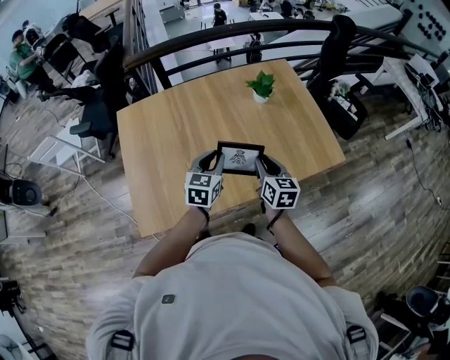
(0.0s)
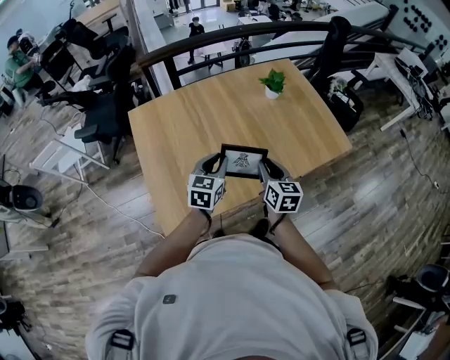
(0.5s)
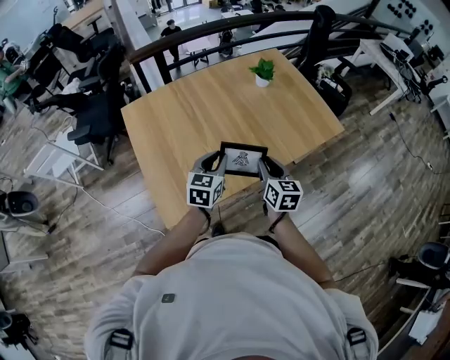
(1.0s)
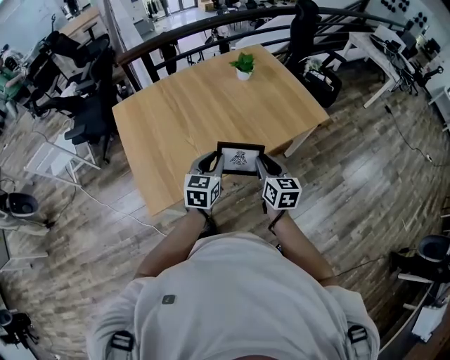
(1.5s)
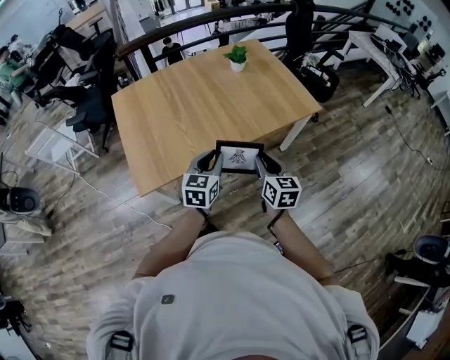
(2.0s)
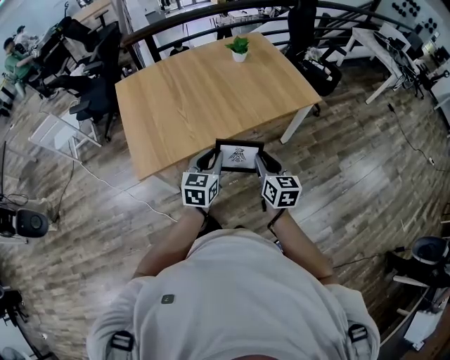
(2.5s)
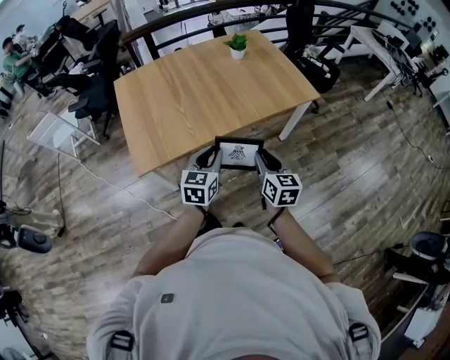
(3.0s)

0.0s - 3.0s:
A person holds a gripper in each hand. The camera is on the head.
0.0s - 1.5s: Both grippers move backward, roughly 20 cm.
1.5s - 3.0s: The two grippers go some 15 cm backward and to the right.

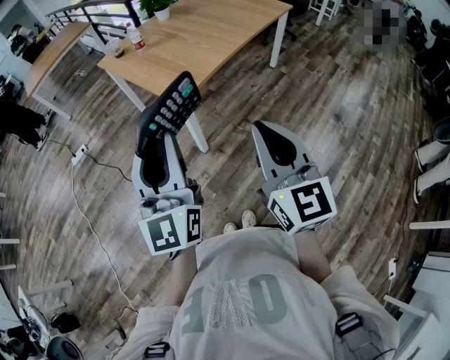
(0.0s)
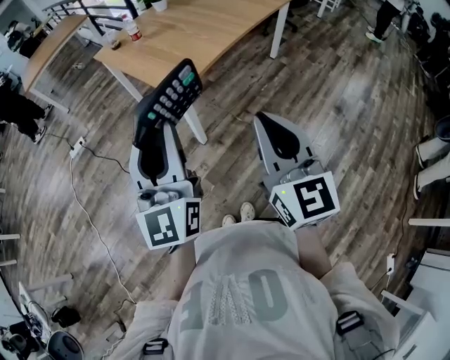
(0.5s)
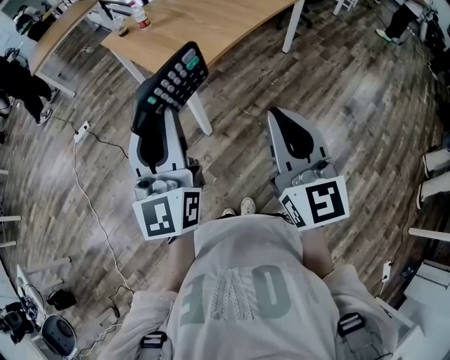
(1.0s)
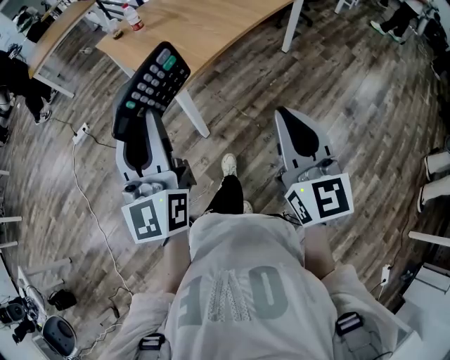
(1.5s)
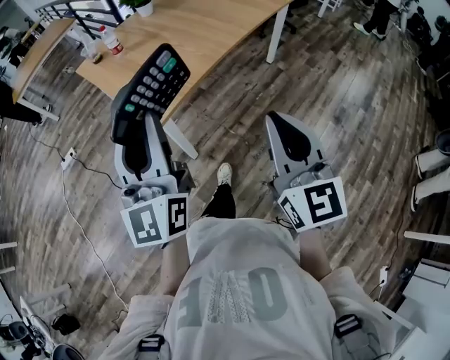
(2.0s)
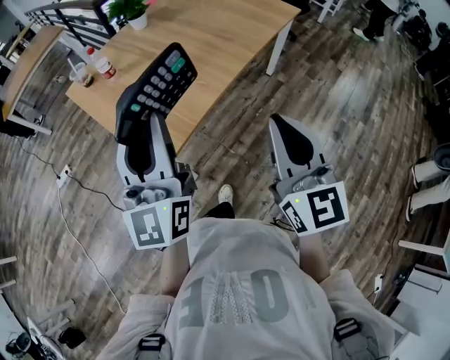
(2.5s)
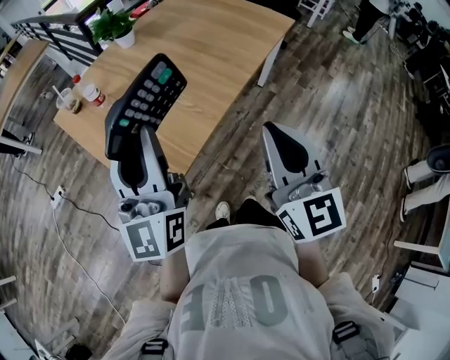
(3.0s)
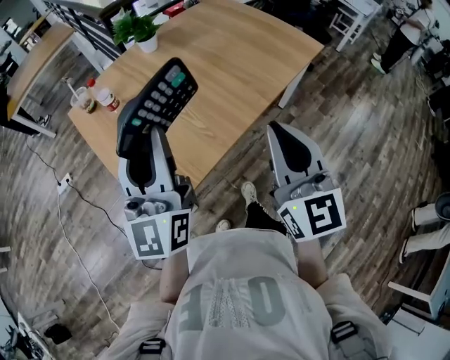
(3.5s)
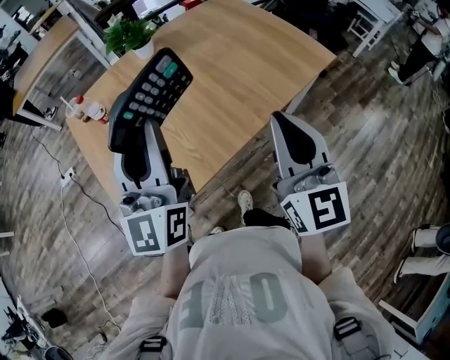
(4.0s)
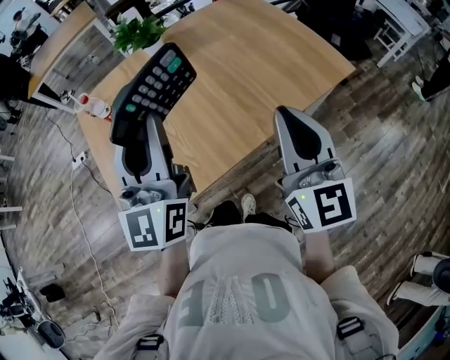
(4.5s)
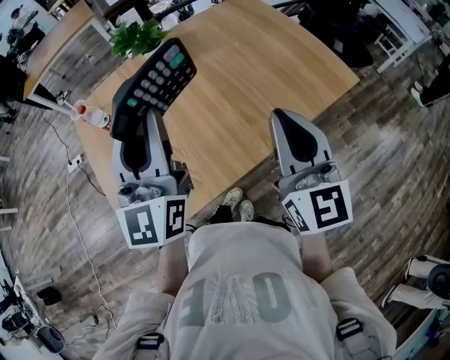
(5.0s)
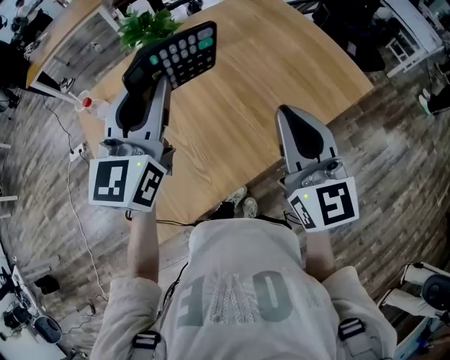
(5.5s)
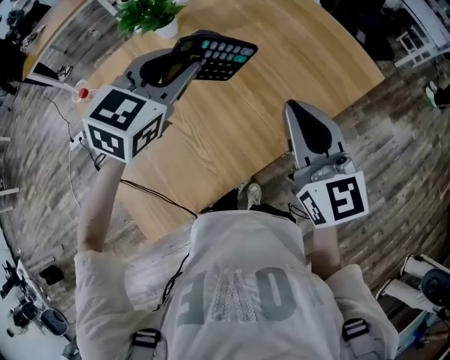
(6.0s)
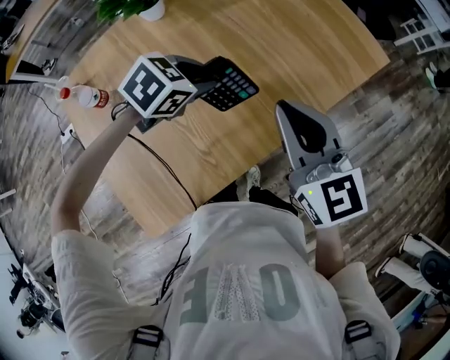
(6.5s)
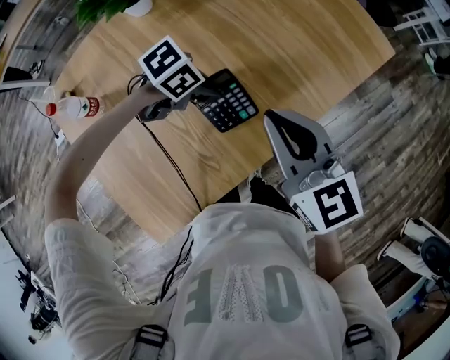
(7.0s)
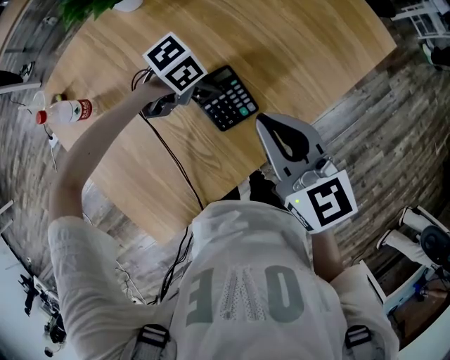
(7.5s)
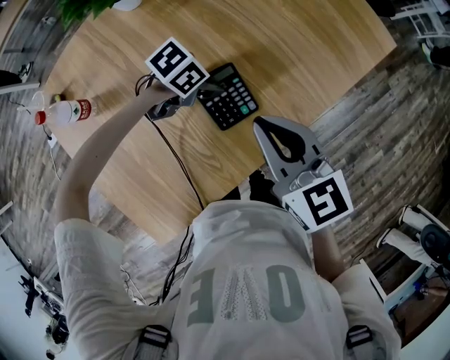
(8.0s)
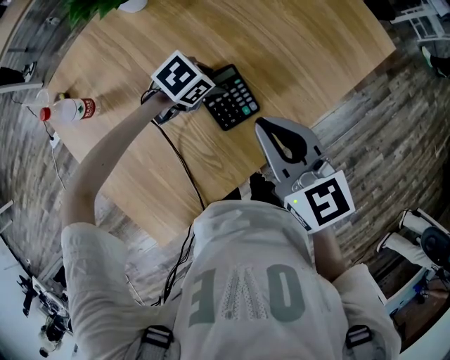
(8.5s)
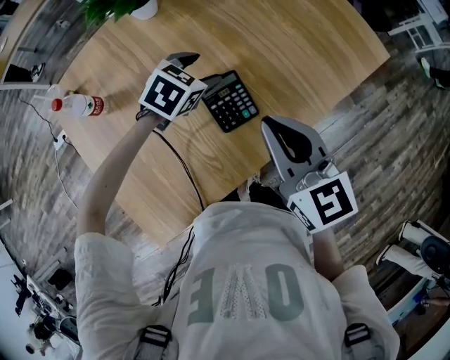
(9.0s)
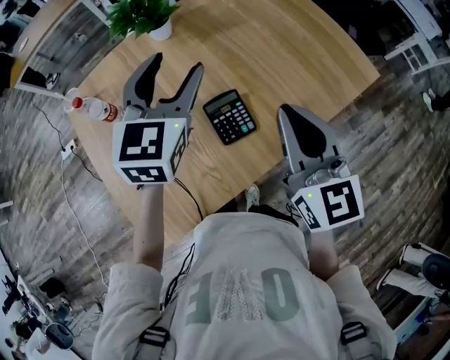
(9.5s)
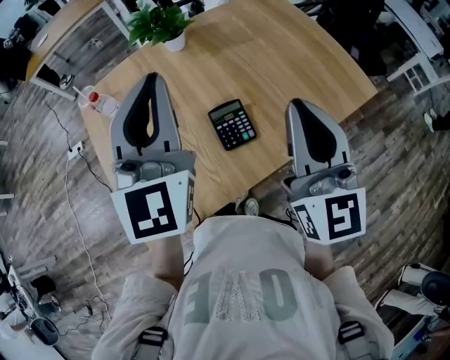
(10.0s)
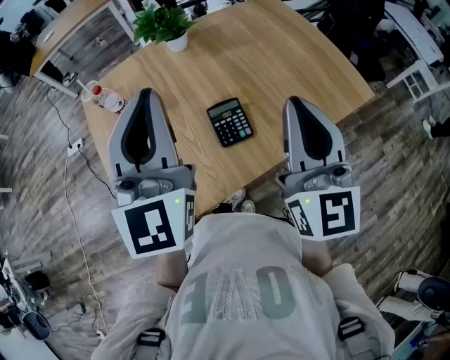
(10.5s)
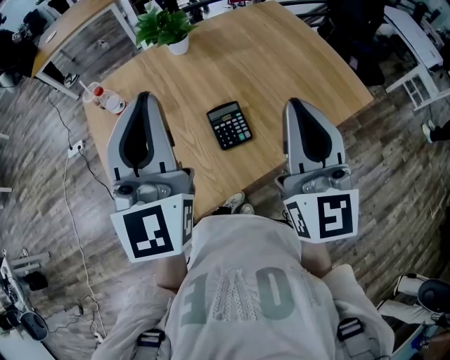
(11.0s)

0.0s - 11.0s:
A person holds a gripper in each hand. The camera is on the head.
0.0s - 2.0s: Both grippers travel together forward and to the right, approximately 15 cm.
2.0s - 3.5s: Both grippers move forward, about 30 cm.
3.5s - 5.5s: Both grippers move forward and to the right, about 25 cm. The left gripper swivels some 20 degrees.
5.5s - 7.5s: The left gripper heads downward, covering about 35 cm, and tilts its fingers some 50 degrees downward. The right gripper travels downward by some 10 cm, and turns by some 30 degrees.
7.5s - 9.0s: The left gripper moves upward, roughly 5 cm, rotates some 50 degrees, and opens.
9.0s - 11.0s: The right gripper heads upward, covering roughly 15 cm, and swivels some 30 degrees. The left gripper shifts some 40 cm upward and backward, tips its fingers upward by approximately 60 degrees, and closes up.

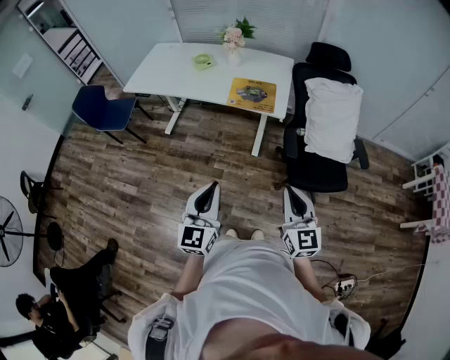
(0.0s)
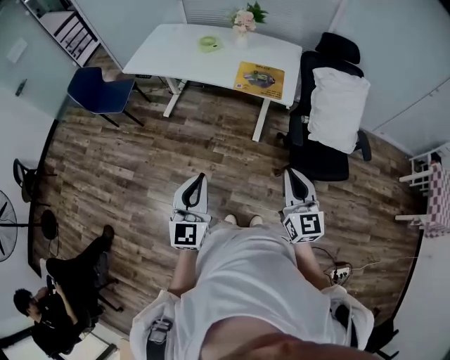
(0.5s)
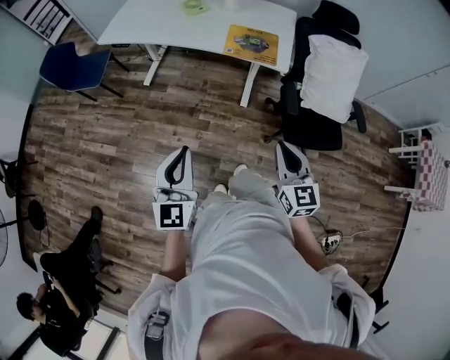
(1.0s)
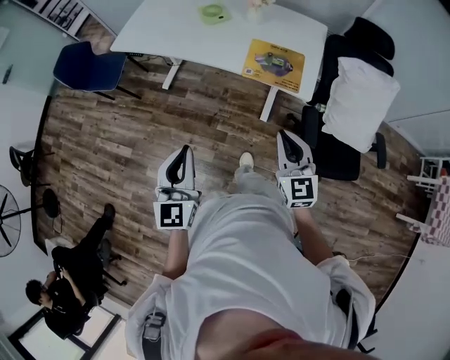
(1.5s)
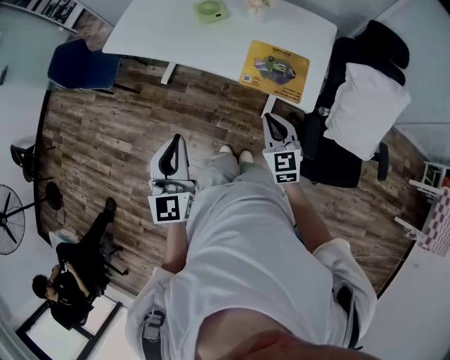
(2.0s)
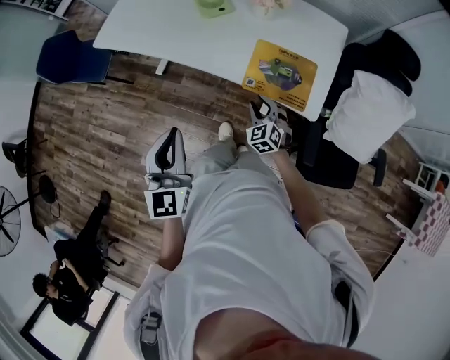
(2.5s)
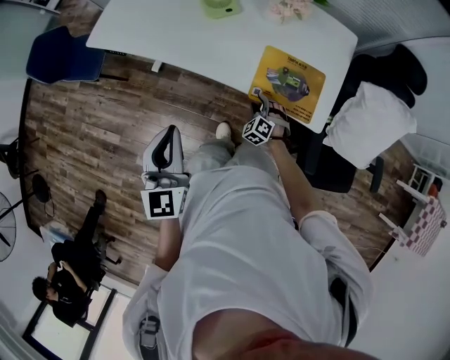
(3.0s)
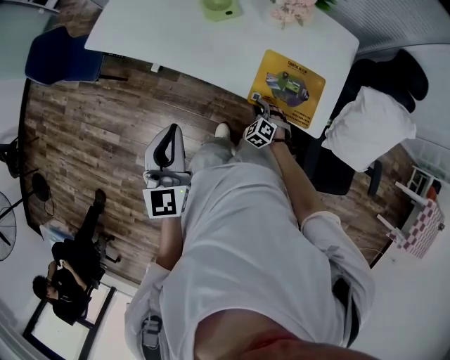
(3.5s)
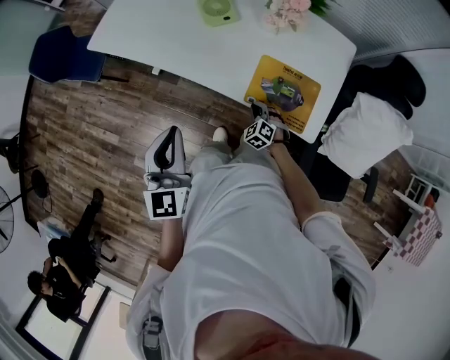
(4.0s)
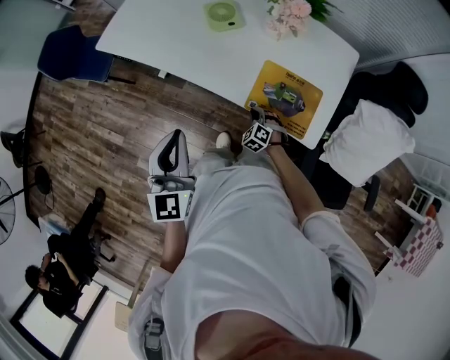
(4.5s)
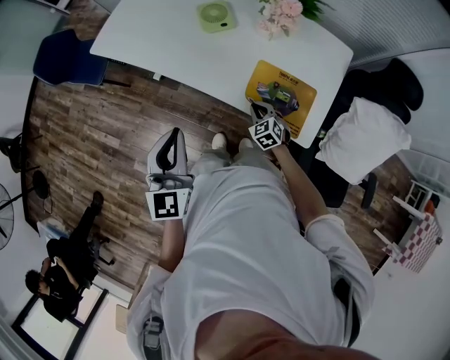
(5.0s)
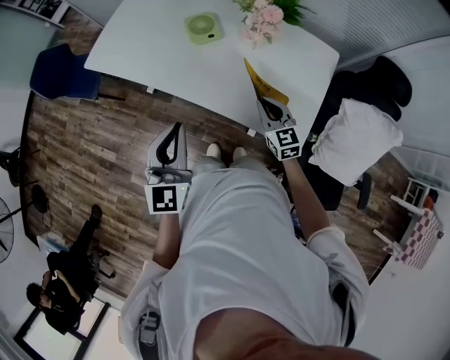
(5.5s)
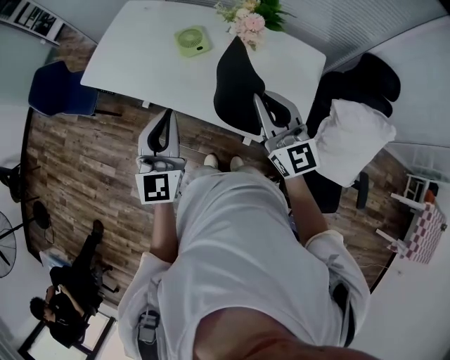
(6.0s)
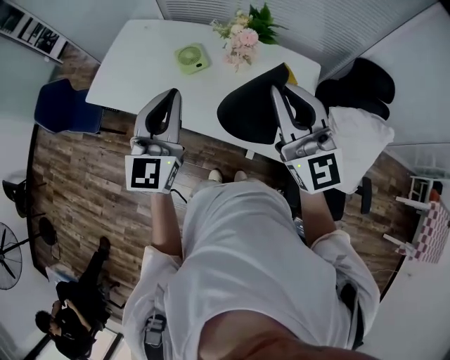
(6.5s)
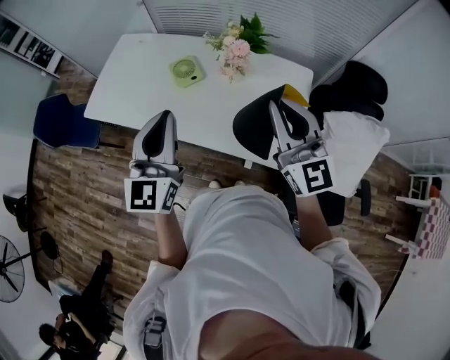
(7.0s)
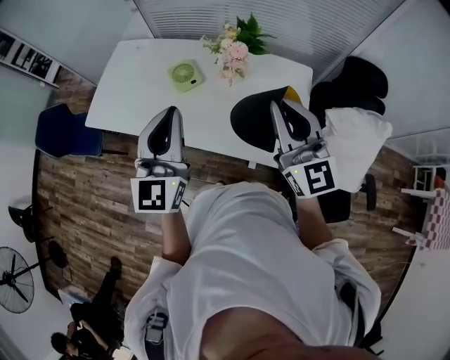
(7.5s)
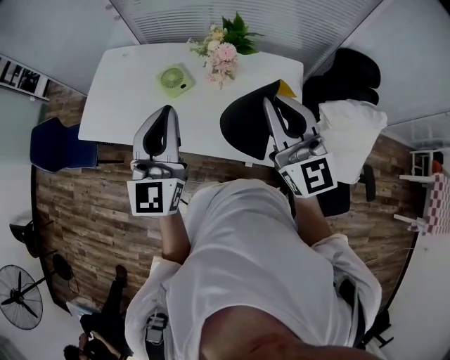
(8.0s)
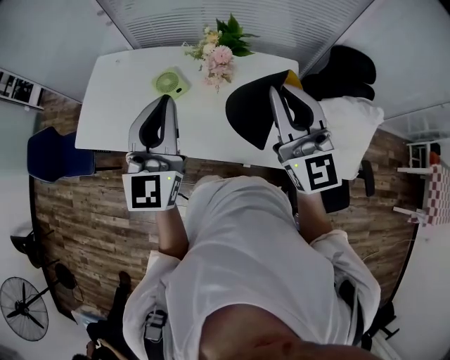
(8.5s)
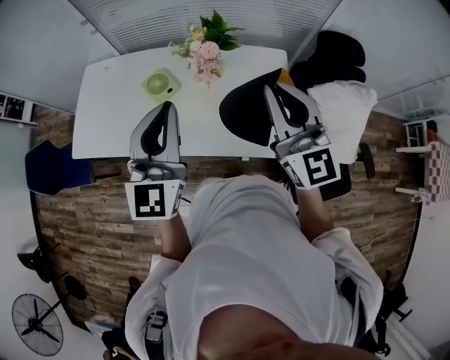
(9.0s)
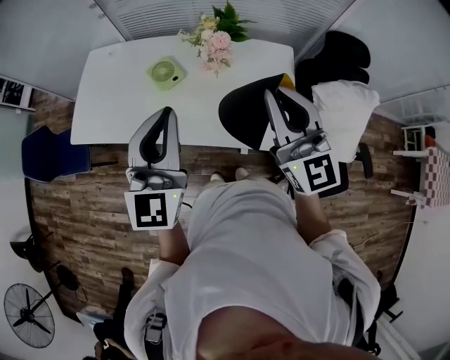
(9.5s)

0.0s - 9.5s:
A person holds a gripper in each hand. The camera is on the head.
0.0s - 2.0s: The two grippers go approximately 35 cm forward. The right gripper rotates approximately 20 degrees.
2.0s - 4.0s: The right gripper goes approximately 30 cm downward and forward, tips its fingers downward by about 30 degrees, and opens, then closes again, while the left gripper goes approximately 15 cm forward.
4.0s - 5.5s: The left gripper heads to the right, covering some 5 cm. The right gripper moves upward, some 20 cm, and points its fingers about 30 degrees further upward.
5.5s - 7.5s: The left gripper goes approximately 15 cm upward and forward, while the right gripper is displaced upward by roughly 30 cm, and swivels about 30 degrees.
7.5s - 9.5s: The grippers make only small movements.

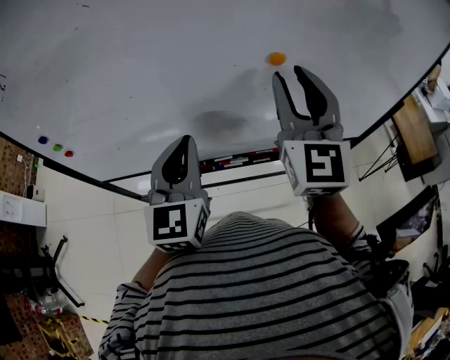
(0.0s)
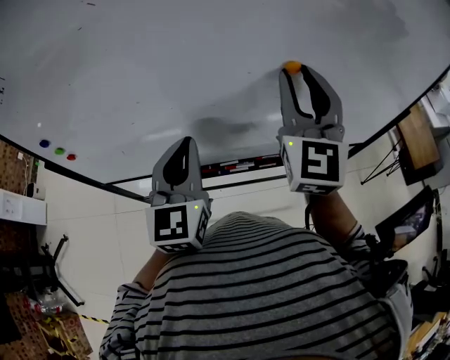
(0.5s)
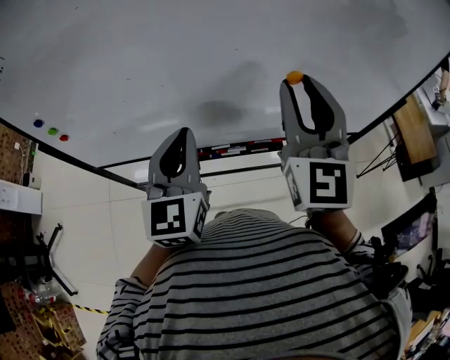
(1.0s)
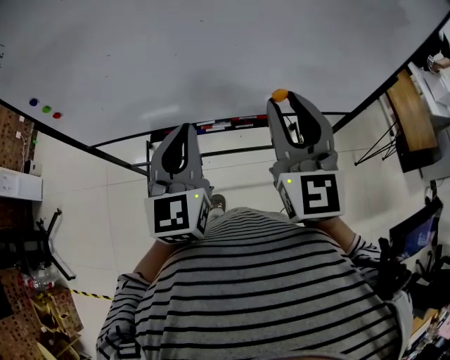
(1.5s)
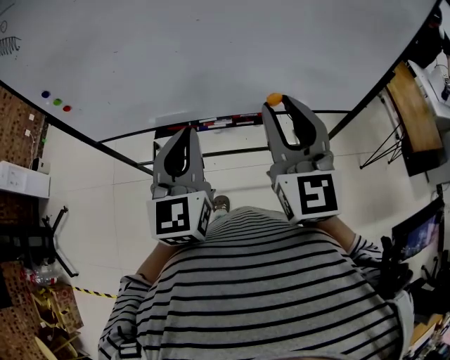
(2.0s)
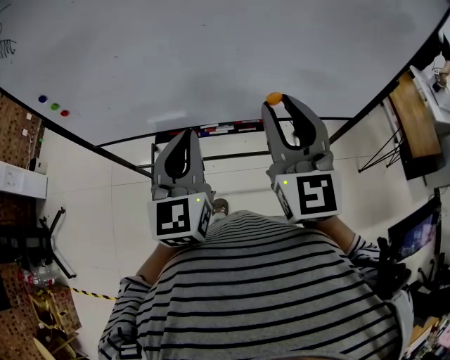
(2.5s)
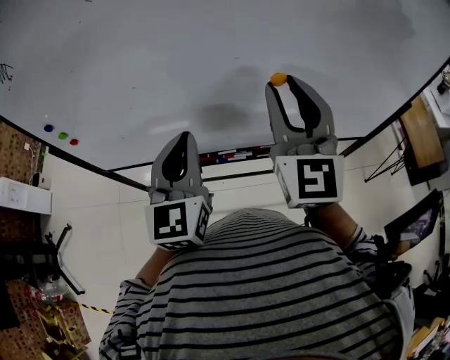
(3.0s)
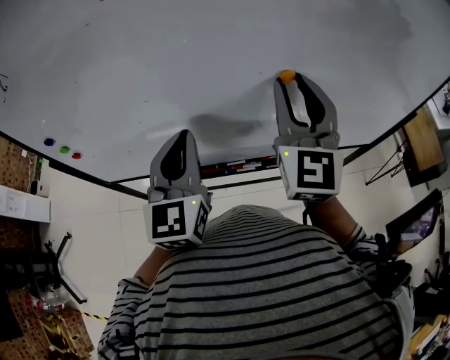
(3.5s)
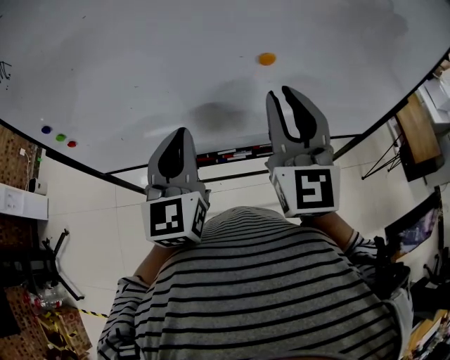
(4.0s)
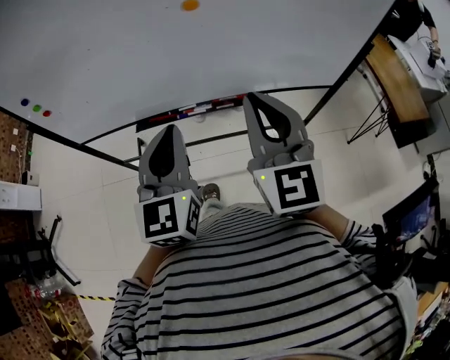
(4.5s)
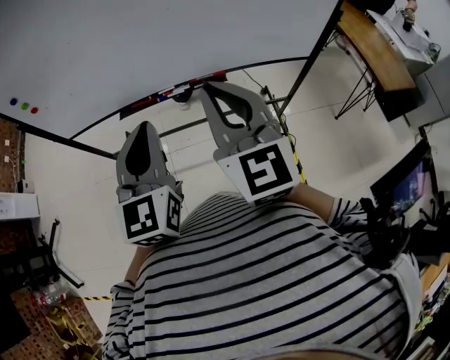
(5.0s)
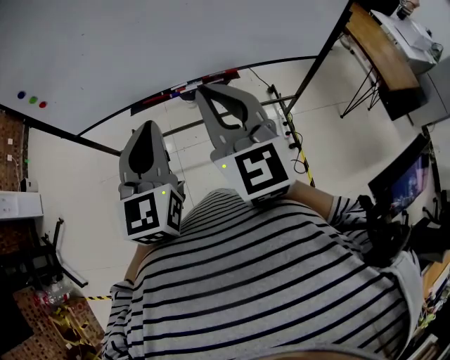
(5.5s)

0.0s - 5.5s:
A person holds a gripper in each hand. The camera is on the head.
0.0s - 2.0s: The right gripper travels backward and downward by some 15 cm. Meanwhile the left gripper travels backward and to the right by about 15 cm.
2.0s - 3.5s: Both grippers move forward and to the left, roughly 20 cm.
3.5s - 5.5s: The grippers both shift backward by approximately 25 cm. The right gripper turns by about 20 degrees, and closes up.
